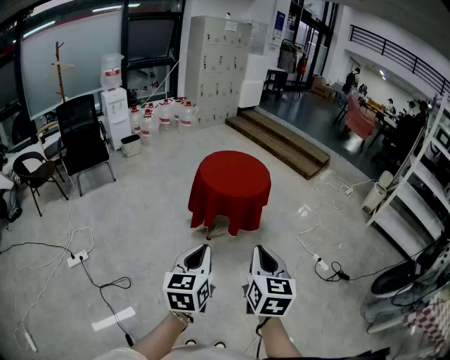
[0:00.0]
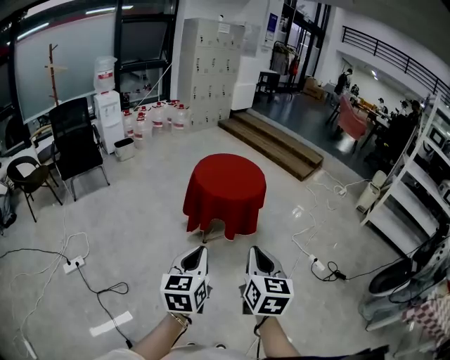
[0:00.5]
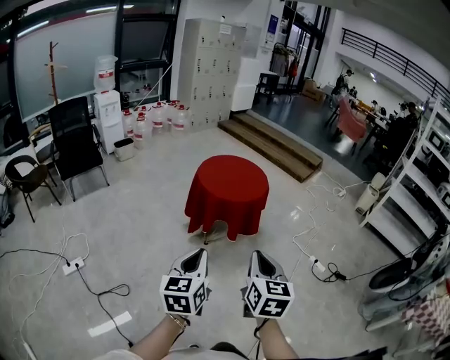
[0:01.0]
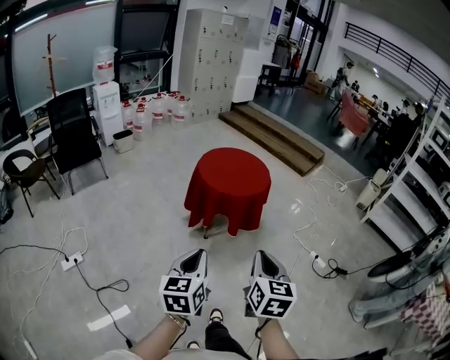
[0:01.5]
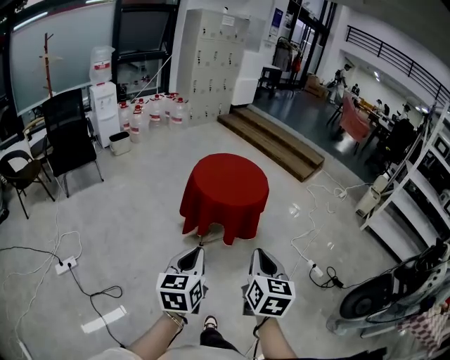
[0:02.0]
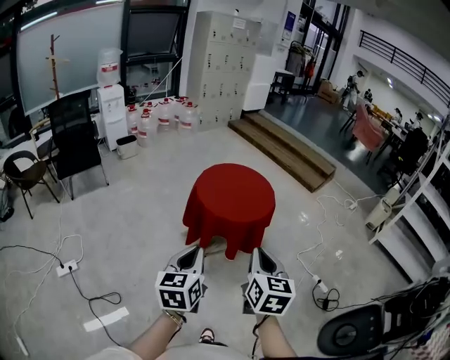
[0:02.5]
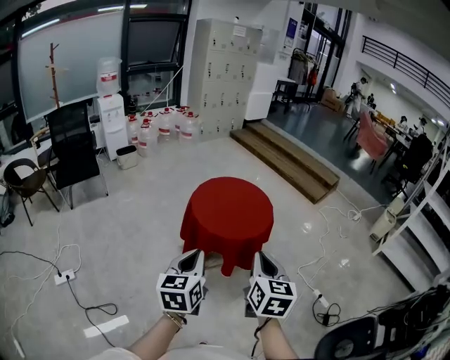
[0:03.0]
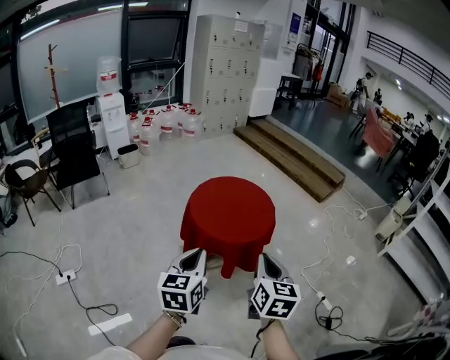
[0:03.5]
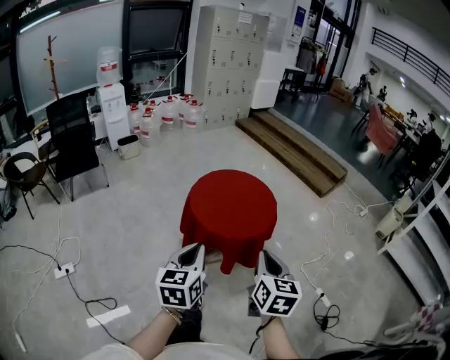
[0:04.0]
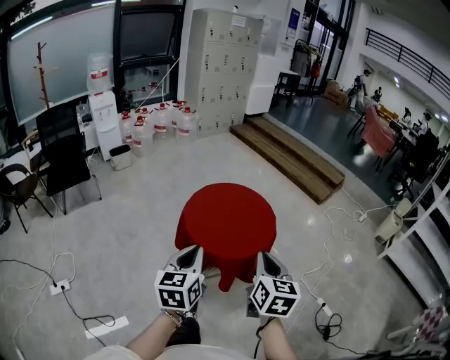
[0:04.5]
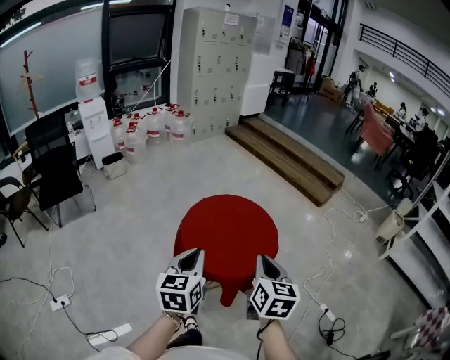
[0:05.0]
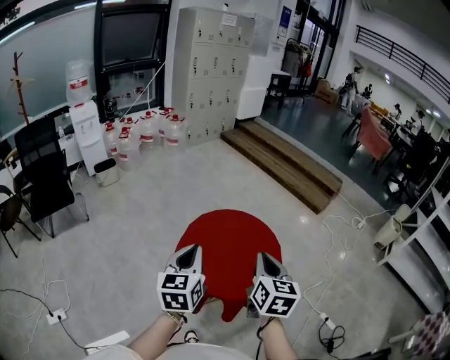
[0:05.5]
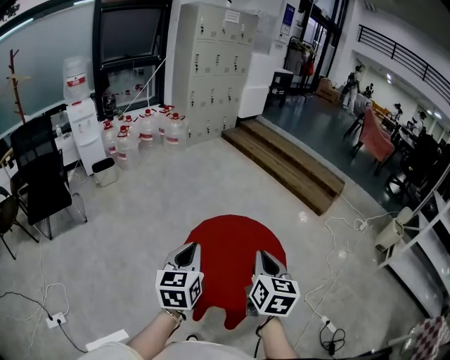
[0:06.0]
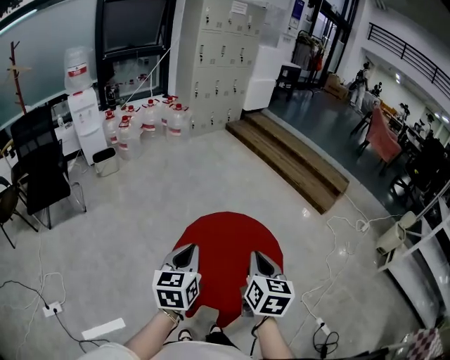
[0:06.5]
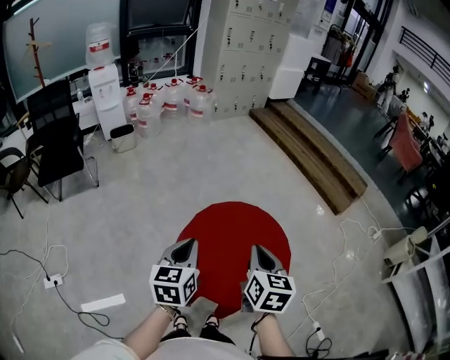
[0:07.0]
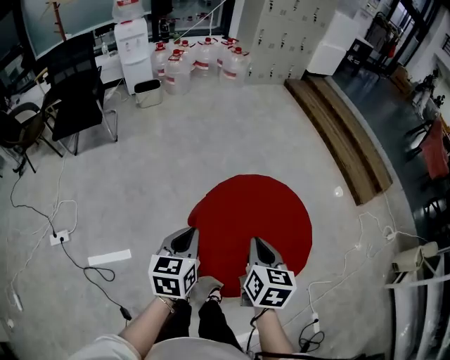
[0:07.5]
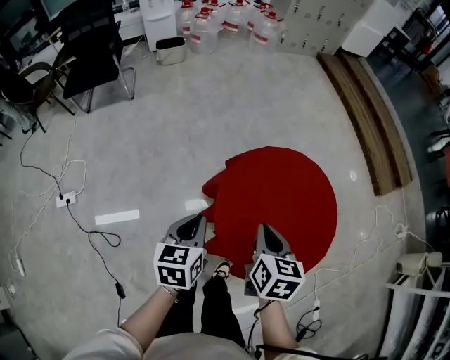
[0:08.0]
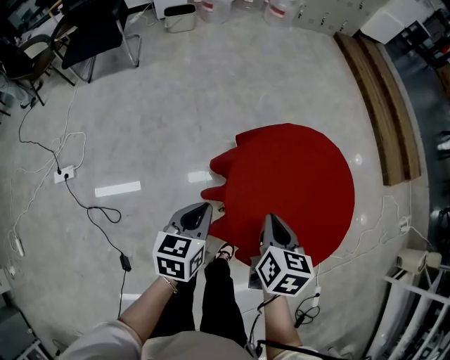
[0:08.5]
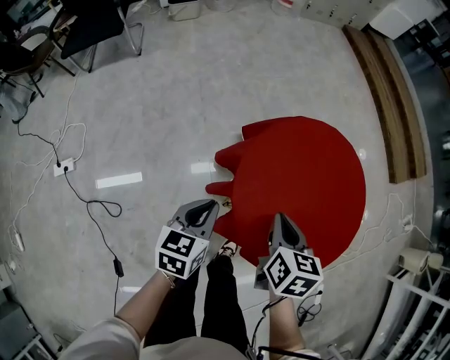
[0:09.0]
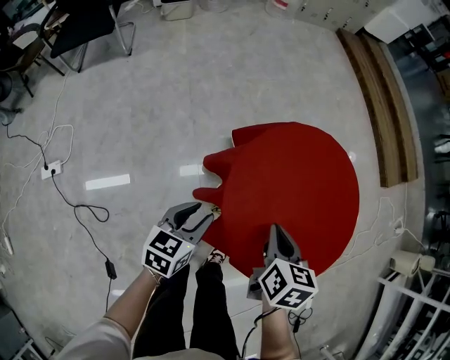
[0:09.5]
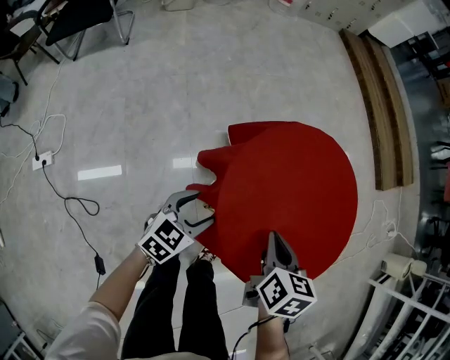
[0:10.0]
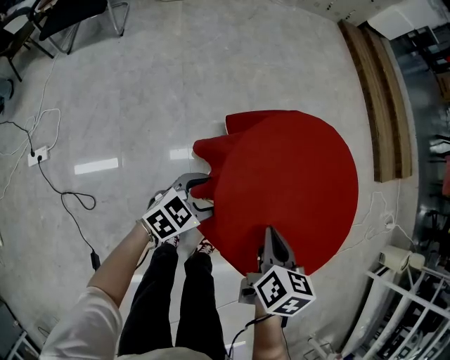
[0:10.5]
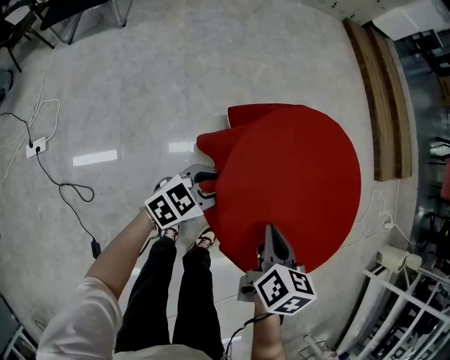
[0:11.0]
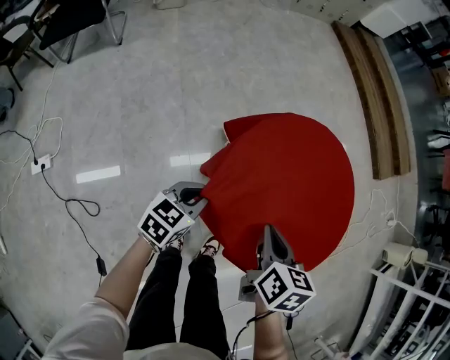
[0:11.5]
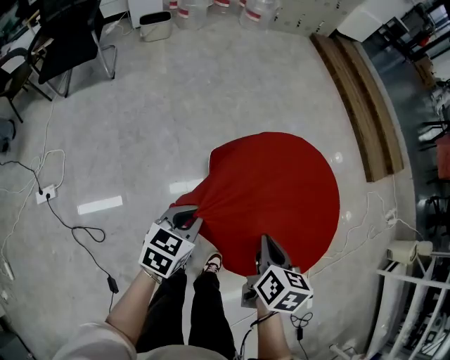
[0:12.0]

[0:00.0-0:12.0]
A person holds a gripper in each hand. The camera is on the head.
0:00.0 to 0:02.0: The grippers both shift forward by about 10 cm.
0:02.0 to 0:04.0: The two grippers go roughly 20 cm forward.
0:04.0 to 0:06.0: The grippers both shift forward by some 30 cm.
0:06.0 to 0:08.0: The right gripper is displaced downward and to the left by roughly 20 cm, and turns by about 30 degrees, while the left gripper travels downward by about 15 cm, and swivels approximately 30 degrees.
0:08.0 to 0:10.0: The right gripper moves downward, roughly 10 cm, while the left gripper moves downward, some 15 cm, swivels approximately 30 degrees, and opens.
0:10.0 to 0:12.0: The left gripper moves upward, about 10 cm, and closes its fingers.

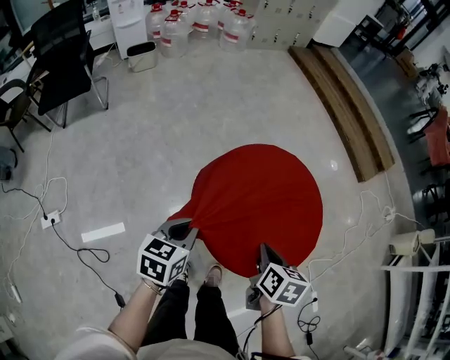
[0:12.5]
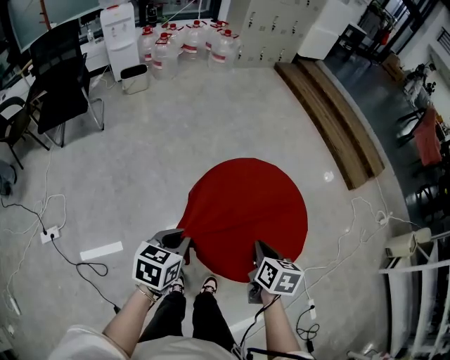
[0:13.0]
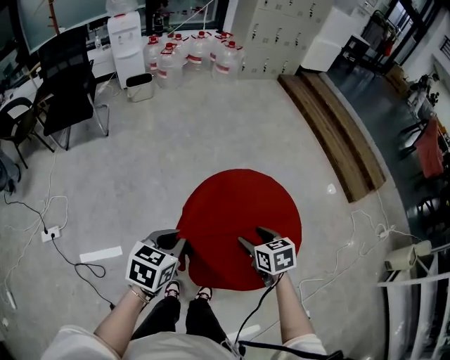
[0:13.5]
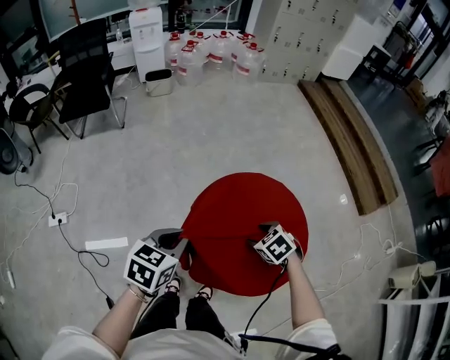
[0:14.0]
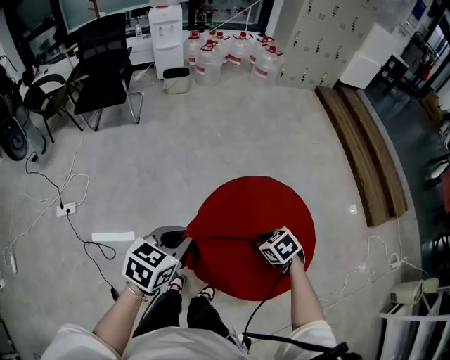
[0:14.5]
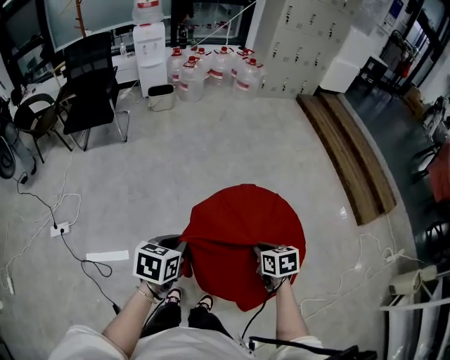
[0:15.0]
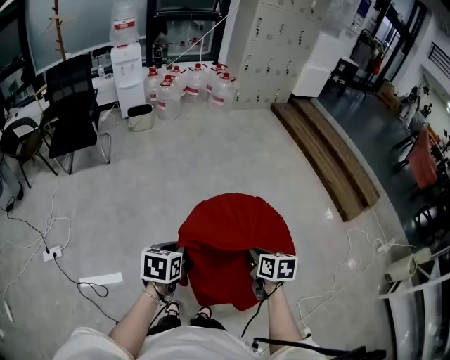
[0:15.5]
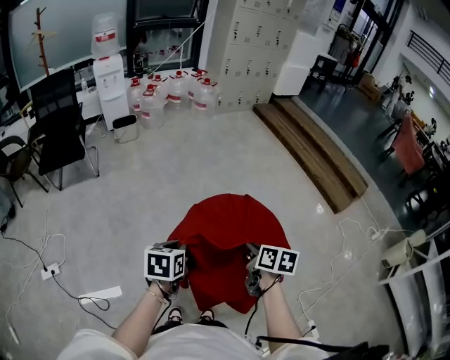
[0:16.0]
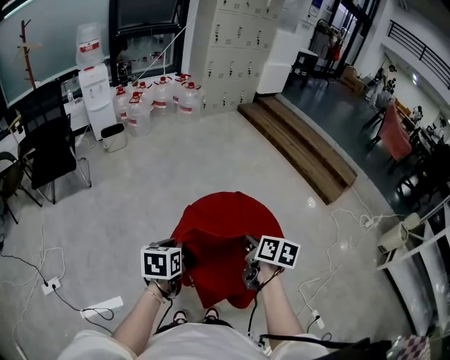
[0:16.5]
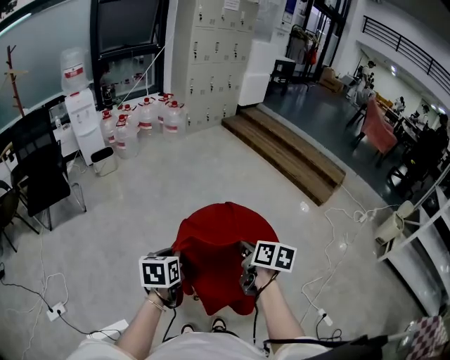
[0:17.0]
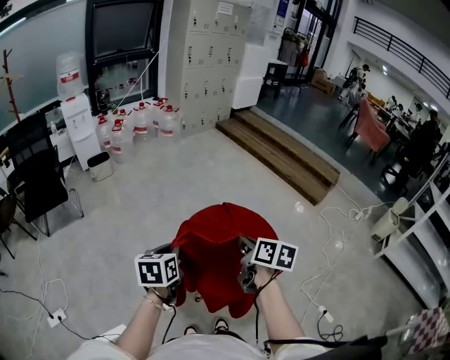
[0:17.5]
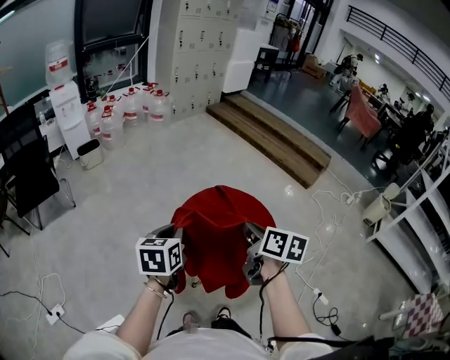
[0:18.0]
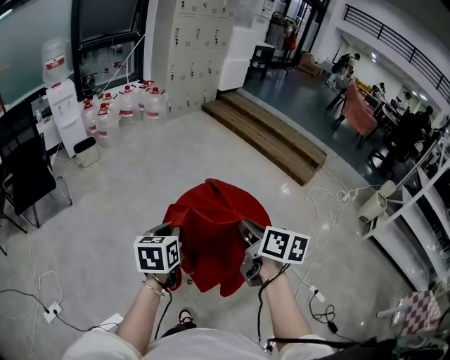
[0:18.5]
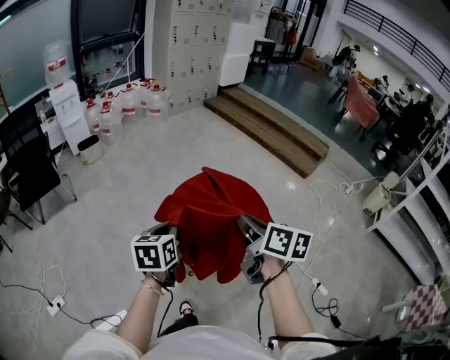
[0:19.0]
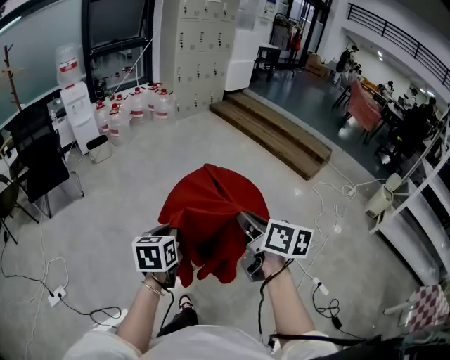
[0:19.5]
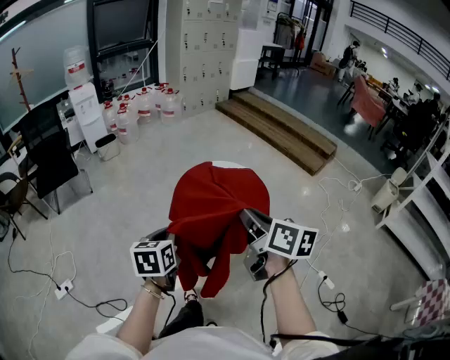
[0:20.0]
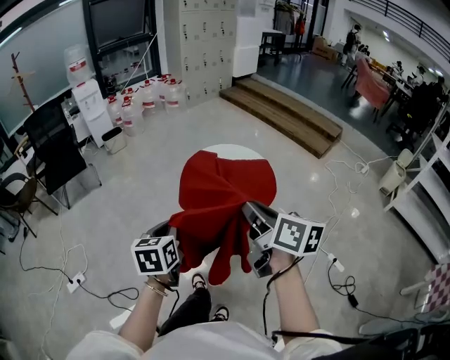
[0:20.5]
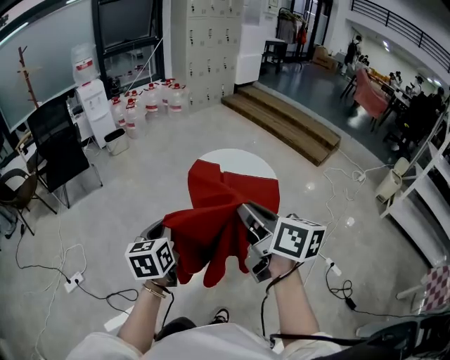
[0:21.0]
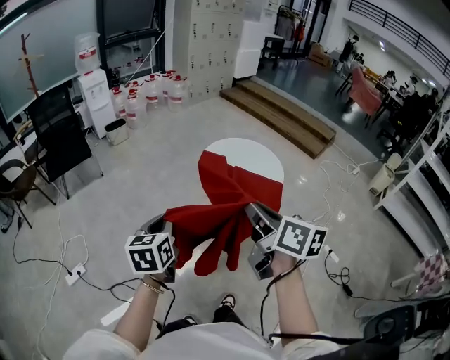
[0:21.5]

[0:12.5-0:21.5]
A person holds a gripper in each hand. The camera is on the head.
0:12.5 to 0:14.5: The right gripper shifts by approximately 10 cm, twists some 60 degrees counterclockwise, seen from behind, and opens and closes again; the left gripper goes roughly 10 cm upward.
0:14.5 to 0:17.0: The right gripper shifts about 20 cm upward, and tips its fingers upward by some 30 degrees.
0:17.0 to 0:19.5: The right gripper travels backward and upward by some 20 cm, while the left gripper moves backward, approximately 15 cm.
0:19.5 to 0:21.5: The left gripper goes roughly 25 cm to the left and backward. The right gripper goes about 25 cm backward and to the left.

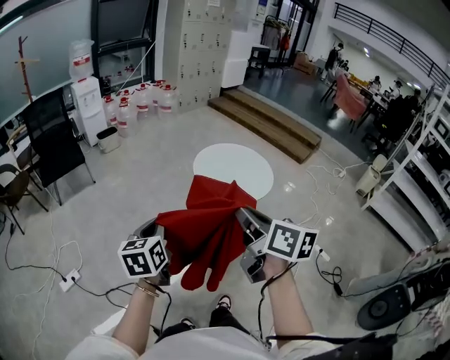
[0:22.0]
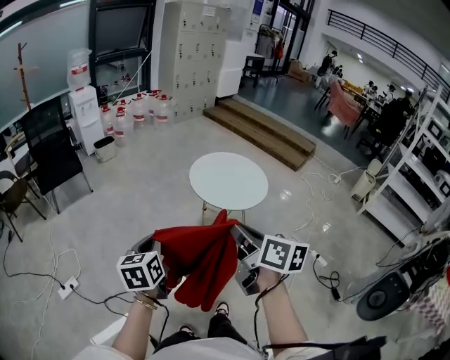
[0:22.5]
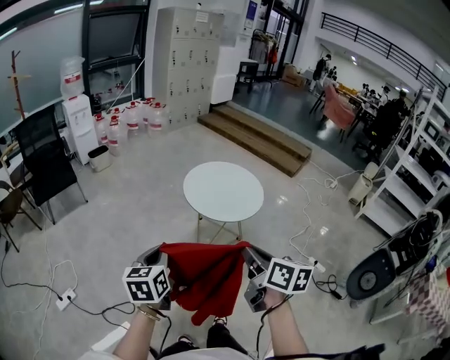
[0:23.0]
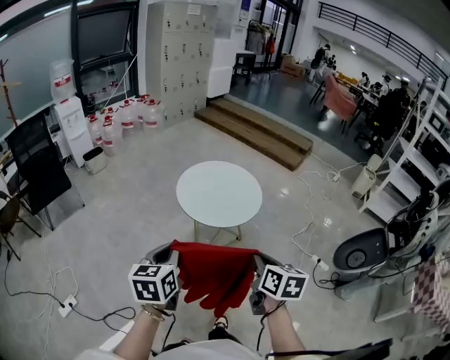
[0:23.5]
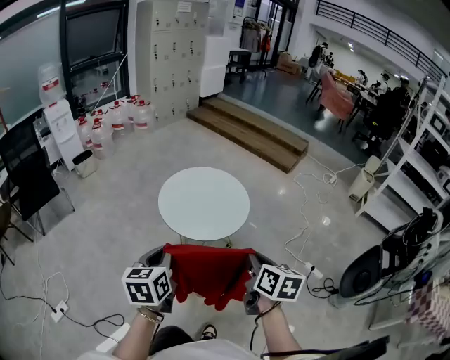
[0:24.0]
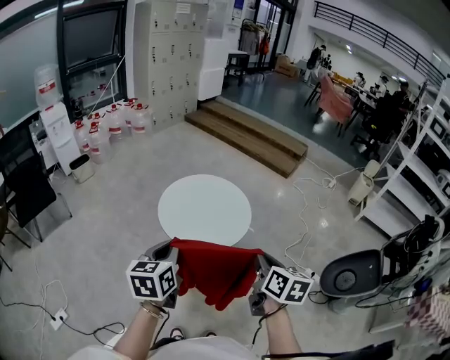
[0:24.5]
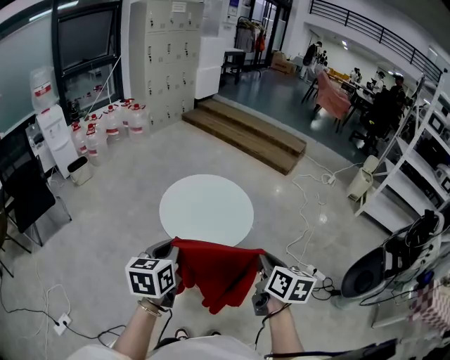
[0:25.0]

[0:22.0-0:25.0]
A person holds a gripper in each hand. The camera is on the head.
0:22.0 to 0:23.5: The right gripper shifts about 20 cm downward and to the right, and swivels about 30 degrees, while the left gripper goes about 10 cm to the right.
0:23.5 to 0:25.0: The left gripper heads forward, covering some 15 cm. Meanwhile the right gripper shifts some 15 cm forward and to the right.

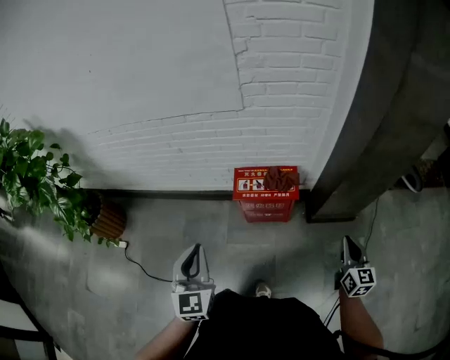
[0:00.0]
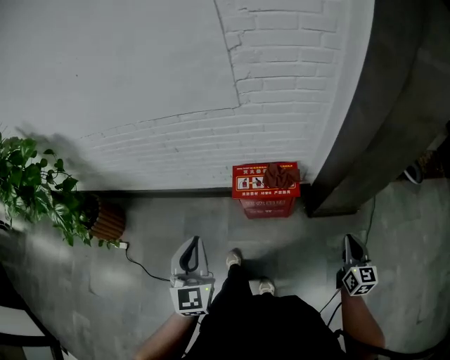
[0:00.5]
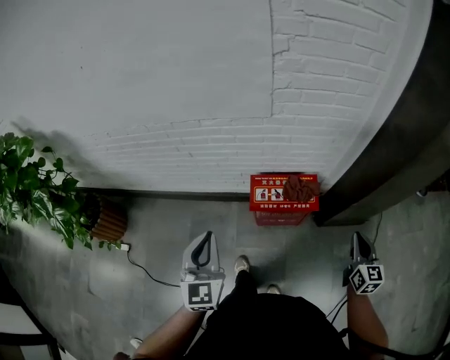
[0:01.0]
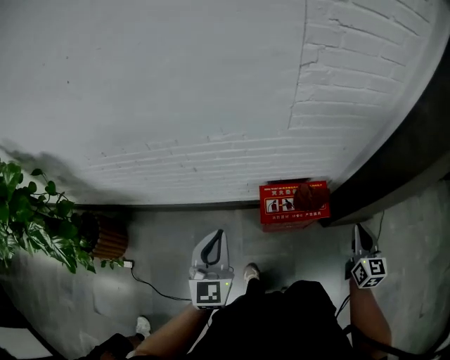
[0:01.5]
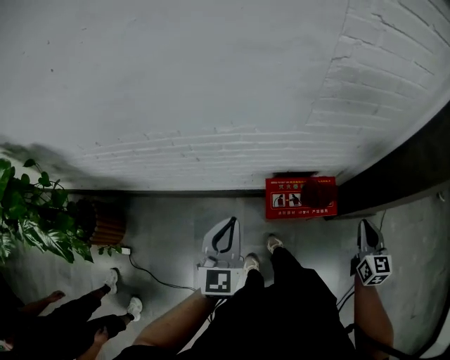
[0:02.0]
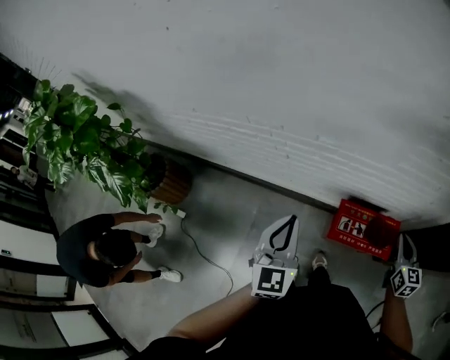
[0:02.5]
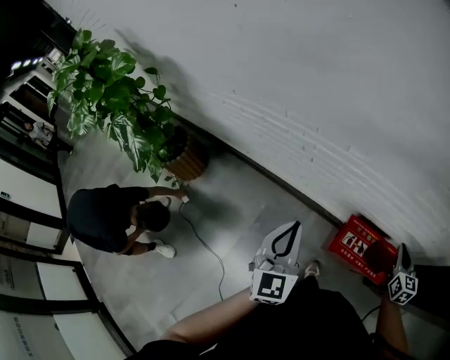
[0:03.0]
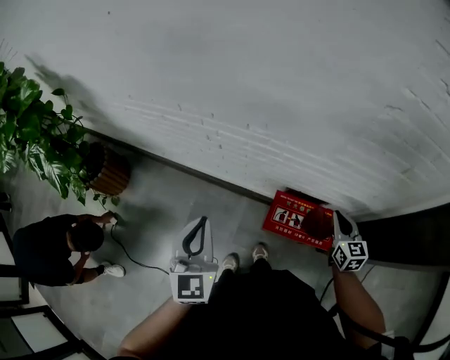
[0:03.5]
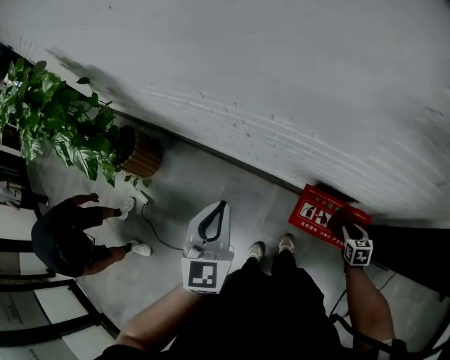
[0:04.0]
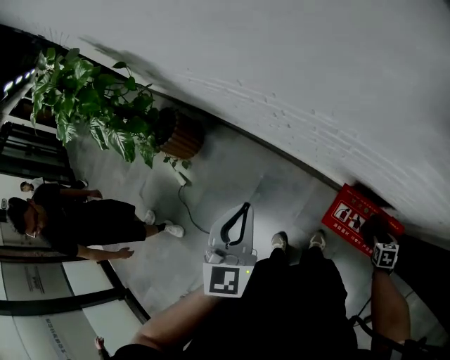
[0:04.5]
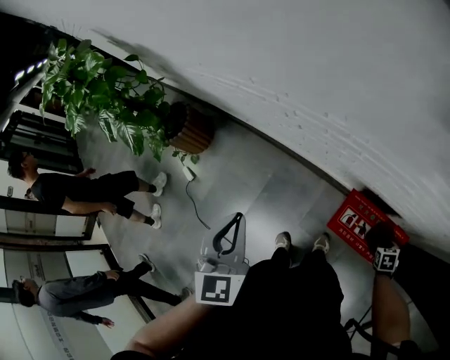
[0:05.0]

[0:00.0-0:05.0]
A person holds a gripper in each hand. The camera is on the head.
0:00.0 to 0:02.5: Both grippers travel together forward and to the left, about 35 cm.
0:02.5 to 0:05.0: The right gripper heads downward, covering some 30 cm, angles its fingers downward, by about 50 degrees, and opens its fingers; the left gripper goes roughly 5 cm to the left, and changes its angle by some 30 degrees.
